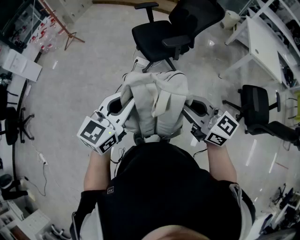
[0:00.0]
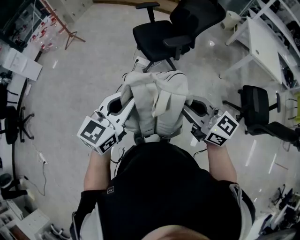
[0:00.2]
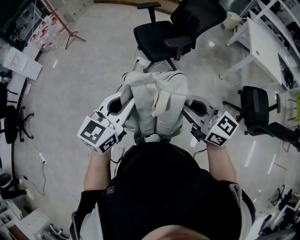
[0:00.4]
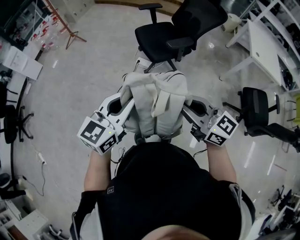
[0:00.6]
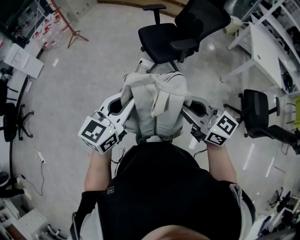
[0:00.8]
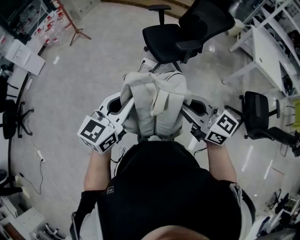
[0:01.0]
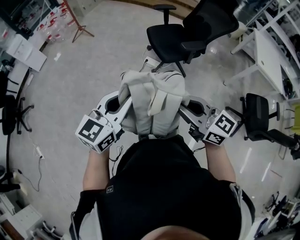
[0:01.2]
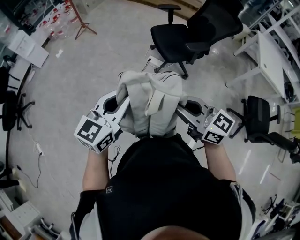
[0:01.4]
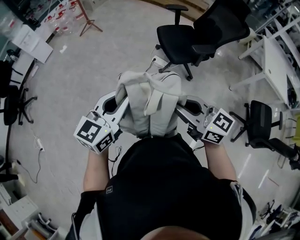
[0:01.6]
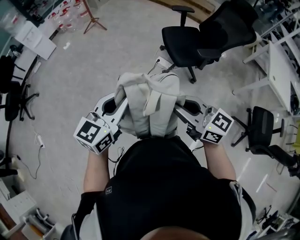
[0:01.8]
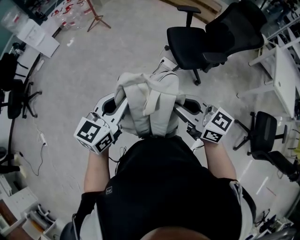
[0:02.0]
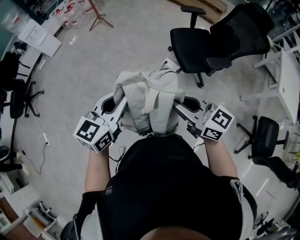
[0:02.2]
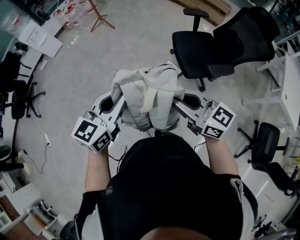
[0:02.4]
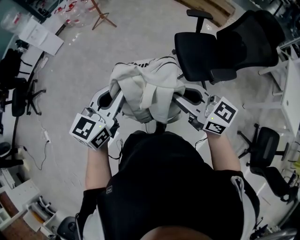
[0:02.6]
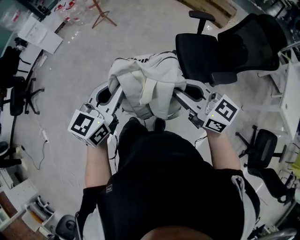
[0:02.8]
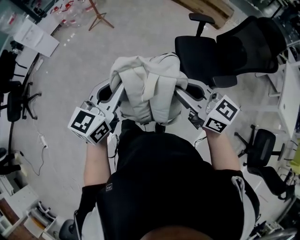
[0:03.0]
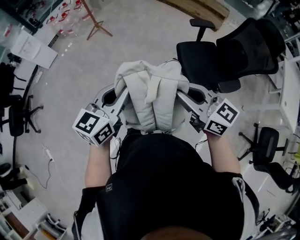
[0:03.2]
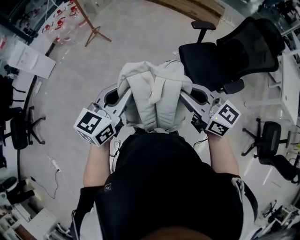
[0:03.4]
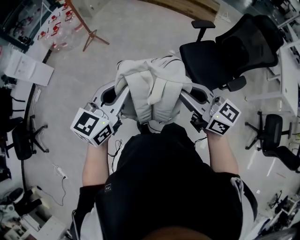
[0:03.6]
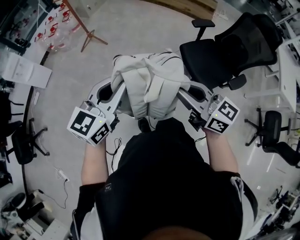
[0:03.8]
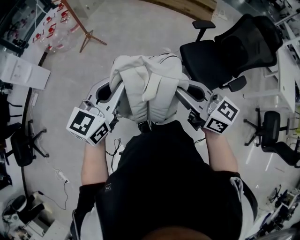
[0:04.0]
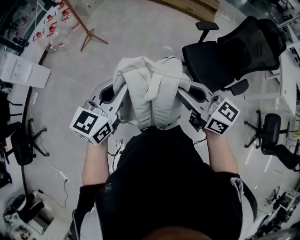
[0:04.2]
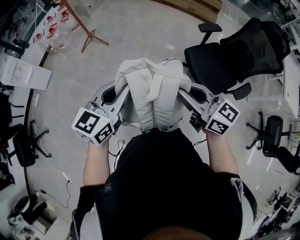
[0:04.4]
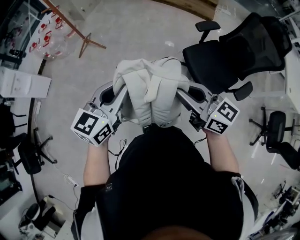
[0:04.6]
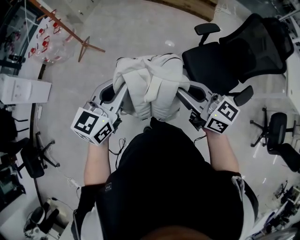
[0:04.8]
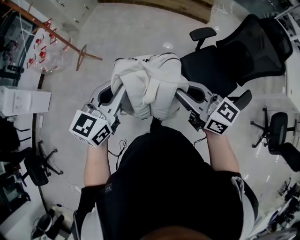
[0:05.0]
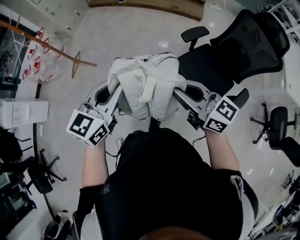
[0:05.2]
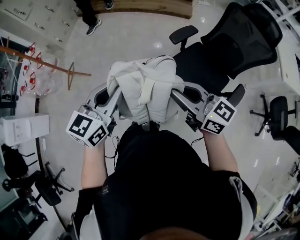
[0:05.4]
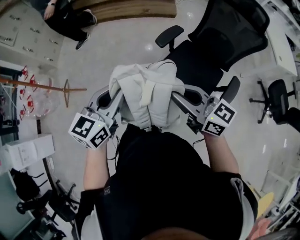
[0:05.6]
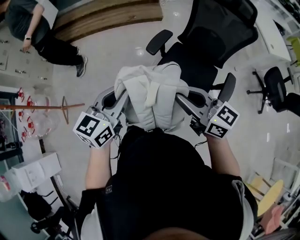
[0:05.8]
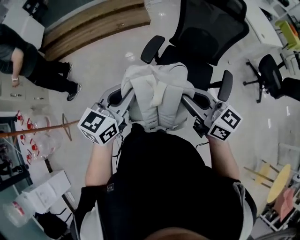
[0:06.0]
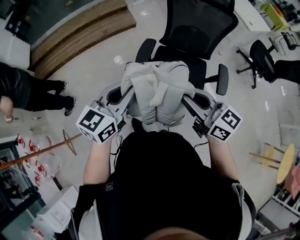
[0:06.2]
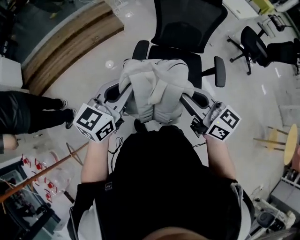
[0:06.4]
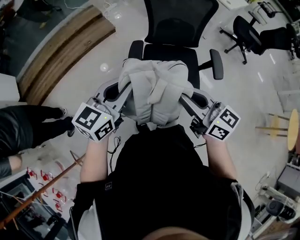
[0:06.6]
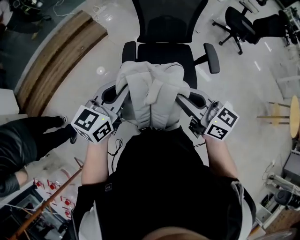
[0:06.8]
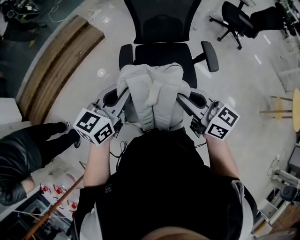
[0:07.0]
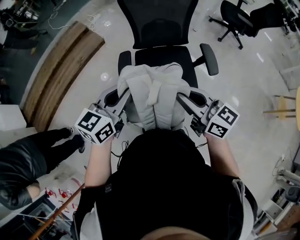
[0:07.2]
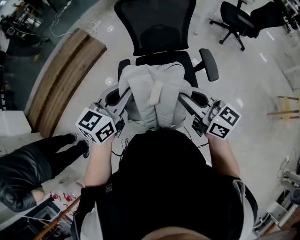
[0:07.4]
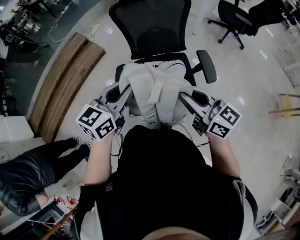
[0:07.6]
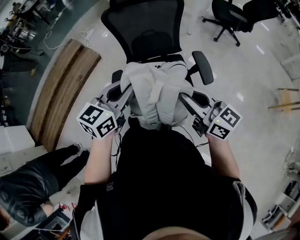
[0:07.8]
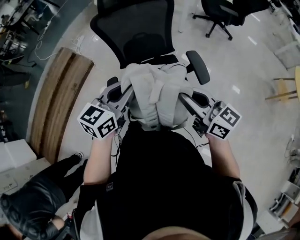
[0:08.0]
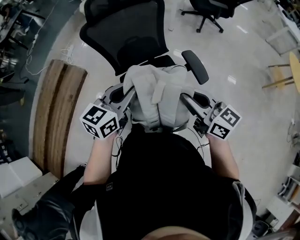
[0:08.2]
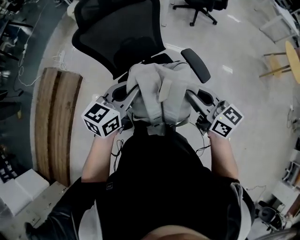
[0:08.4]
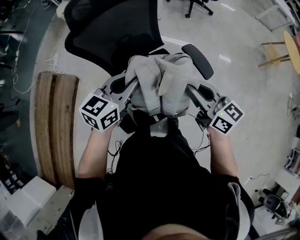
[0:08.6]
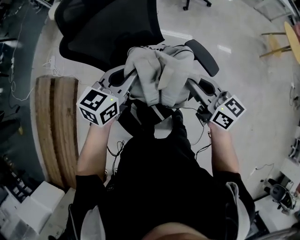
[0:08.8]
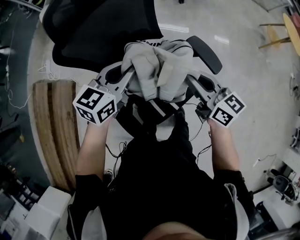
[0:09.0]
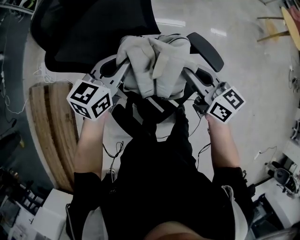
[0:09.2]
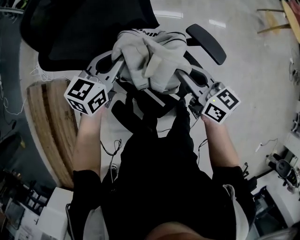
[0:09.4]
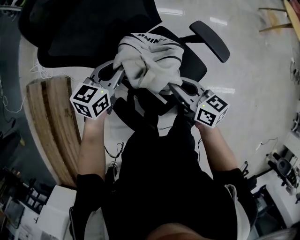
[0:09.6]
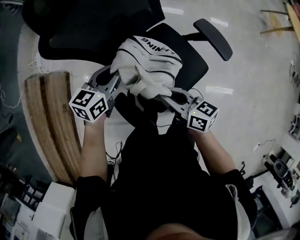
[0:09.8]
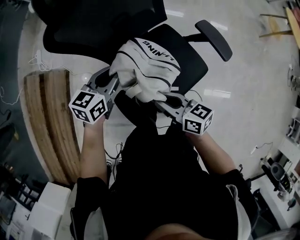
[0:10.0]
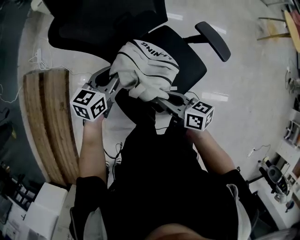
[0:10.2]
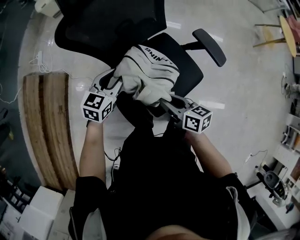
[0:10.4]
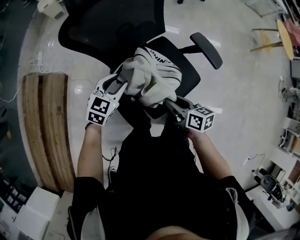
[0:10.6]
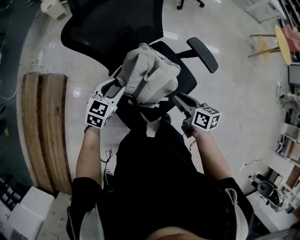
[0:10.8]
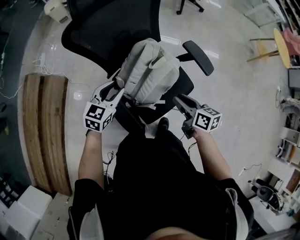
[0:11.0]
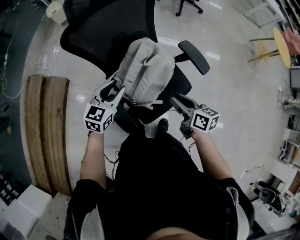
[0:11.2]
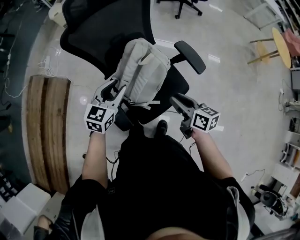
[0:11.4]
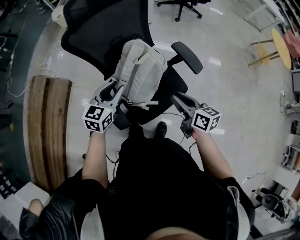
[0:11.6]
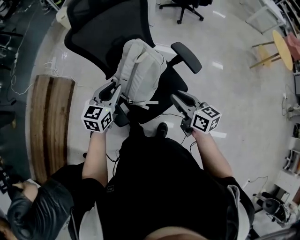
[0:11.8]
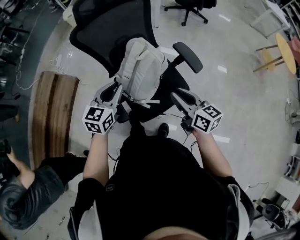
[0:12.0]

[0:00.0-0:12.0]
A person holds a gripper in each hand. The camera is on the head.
0:00.0 to 0:01.6: Both grippers travel together to the left, some 20 cm.
0:01.6 to 0:03.0: Both grippers move forward, about 35 cm.
0:03.0 to 0:04.4: Both grippers travel together forward and to the left, about 30 cm.
0:04.4 to 0:06.0: The right gripper changes place by approximately 40 cm, and turns by about 40 degrees; the left gripper changes place by roughly 50 cm, and rotates roughly 40 degrees.
0:06.0 to 0:07.6: The right gripper ends up about 15 cm from where it was, and turns by approximately 30 degrees, while the left gripper shifts by roughly 15 cm, and rotates some 30 degrees.
0:07.6 to 0:09.0: The left gripper changes place by approximately 35 cm, and turns by some 40 degrees. The right gripper ends up roughly 25 cm from where it was, and changes its angle by roughly 40 degrees.
0:09.0 to 0:10.4: The right gripper heads downward, backward and to the left, covering about 20 cm, and changes its angle by some 30 degrees, while the left gripper moves downward, to the left and backward, some 20 cm, and opens its fingers.
0:10.4 to 0:12.0: The right gripper shifts roughly 25 cm to the right and upward, and changes its angle by approximately 20 degrees. Meanwhile the left gripper travels upward, backward and to the right by approximately 25 cm.

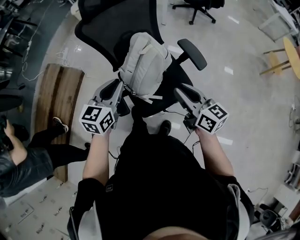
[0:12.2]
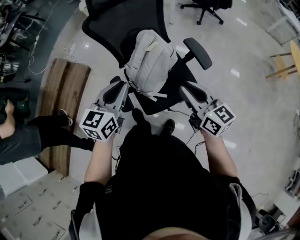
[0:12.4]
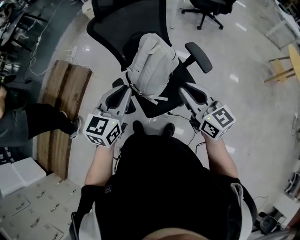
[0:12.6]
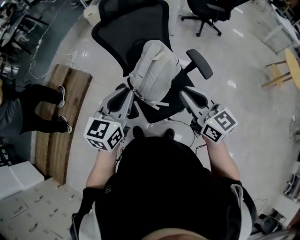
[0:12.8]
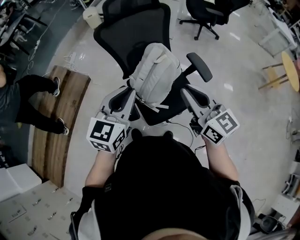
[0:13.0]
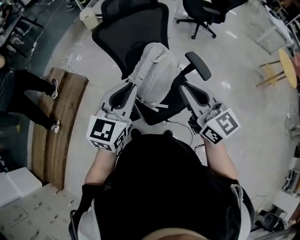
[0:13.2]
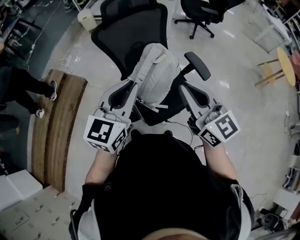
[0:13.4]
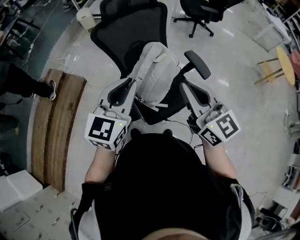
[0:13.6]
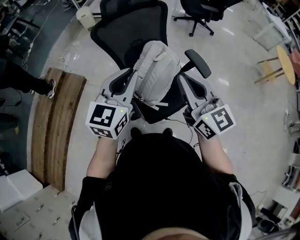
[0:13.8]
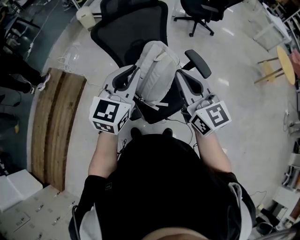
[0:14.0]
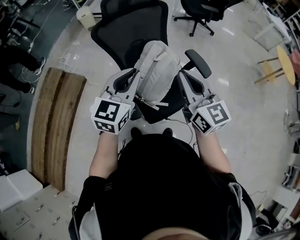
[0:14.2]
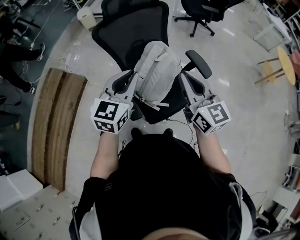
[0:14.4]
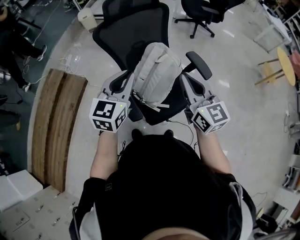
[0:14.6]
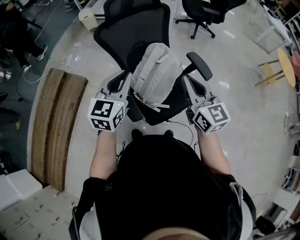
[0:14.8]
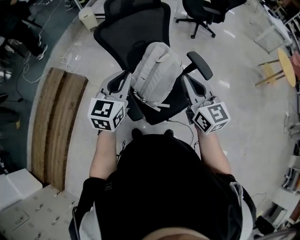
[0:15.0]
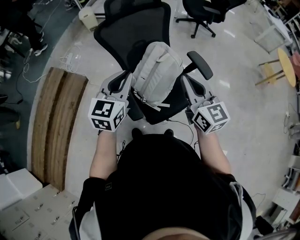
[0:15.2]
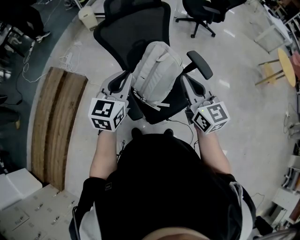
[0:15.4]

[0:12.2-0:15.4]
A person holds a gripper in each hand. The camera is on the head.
0:12.2 to 0:13.8: The left gripper travels upward by roughly 15 cm. The right gripper goes about 20 cm upward and to the left, and rotates some 30 degrees.
0:13.8 to 0:15.4: The grippers both shift downward by about 5 cm.

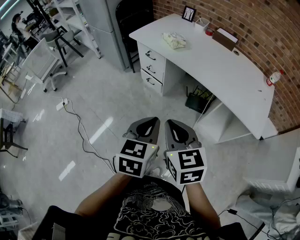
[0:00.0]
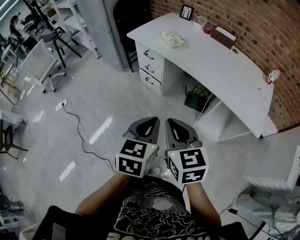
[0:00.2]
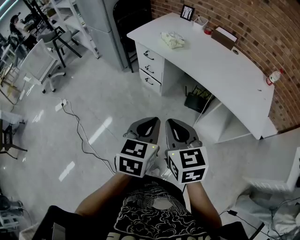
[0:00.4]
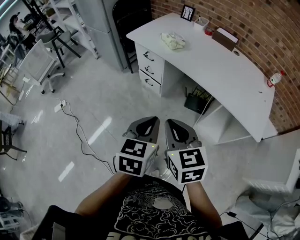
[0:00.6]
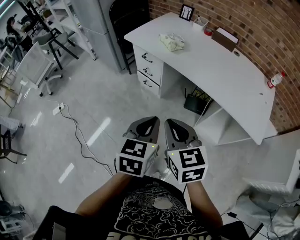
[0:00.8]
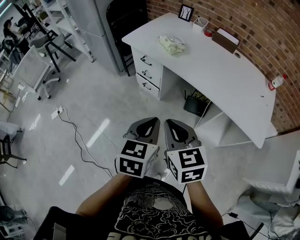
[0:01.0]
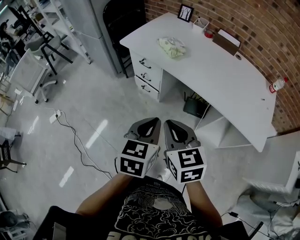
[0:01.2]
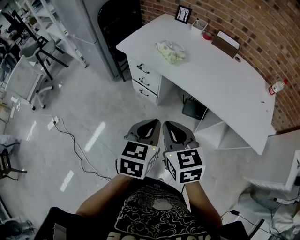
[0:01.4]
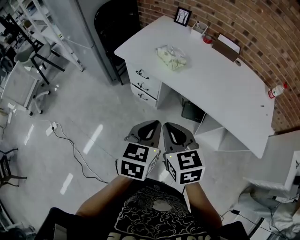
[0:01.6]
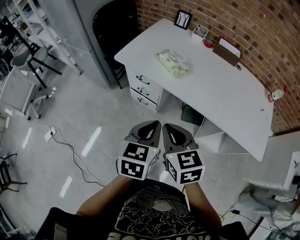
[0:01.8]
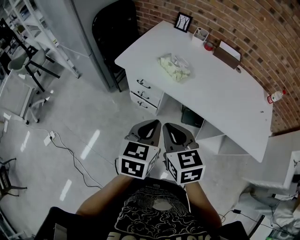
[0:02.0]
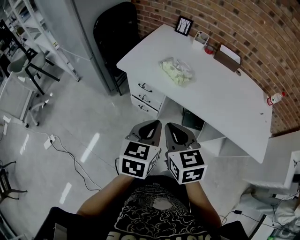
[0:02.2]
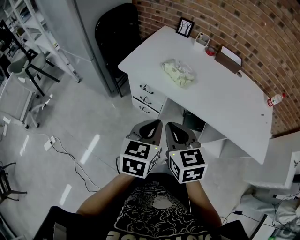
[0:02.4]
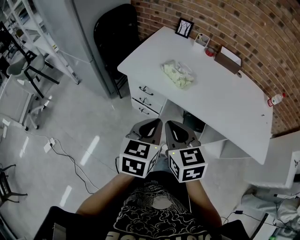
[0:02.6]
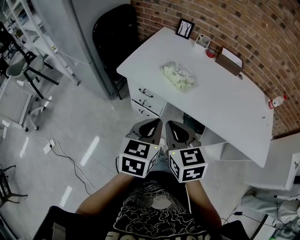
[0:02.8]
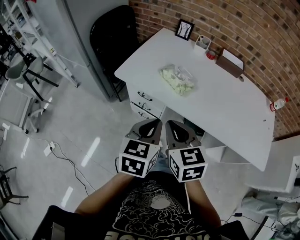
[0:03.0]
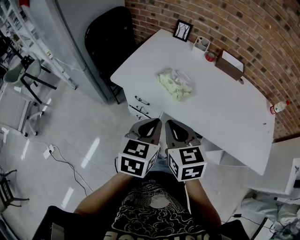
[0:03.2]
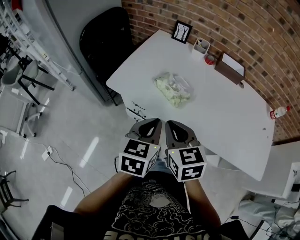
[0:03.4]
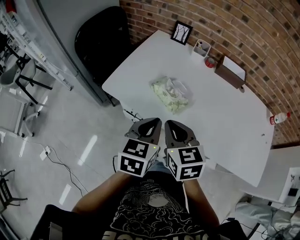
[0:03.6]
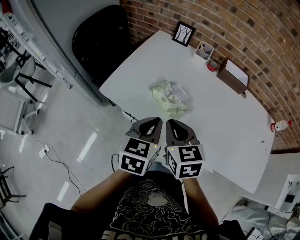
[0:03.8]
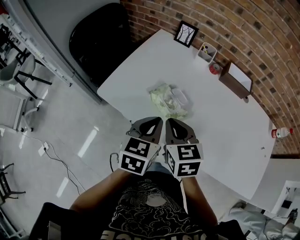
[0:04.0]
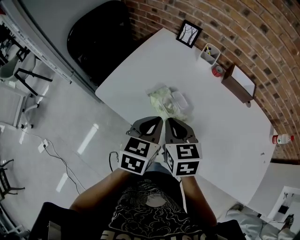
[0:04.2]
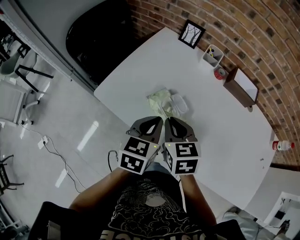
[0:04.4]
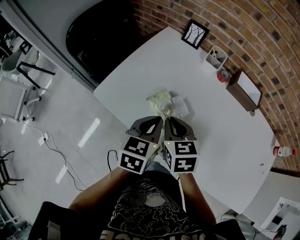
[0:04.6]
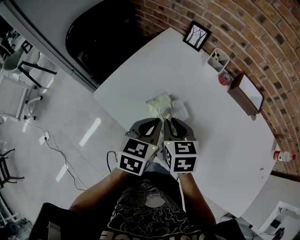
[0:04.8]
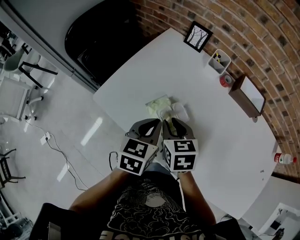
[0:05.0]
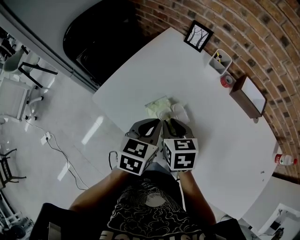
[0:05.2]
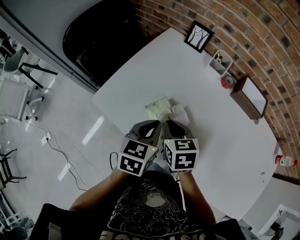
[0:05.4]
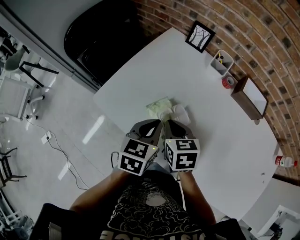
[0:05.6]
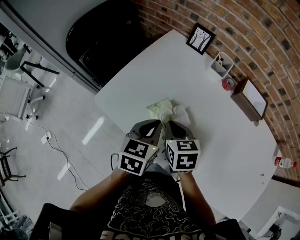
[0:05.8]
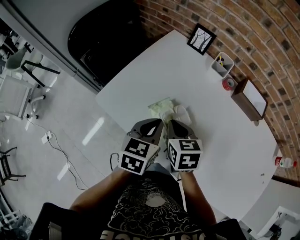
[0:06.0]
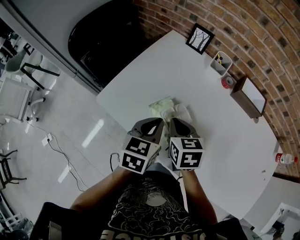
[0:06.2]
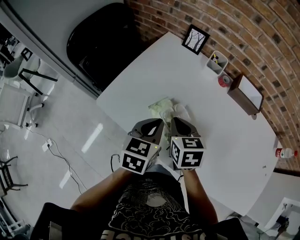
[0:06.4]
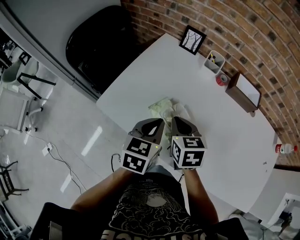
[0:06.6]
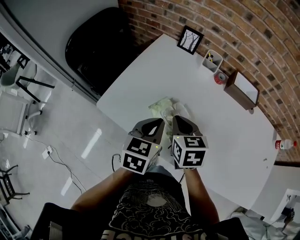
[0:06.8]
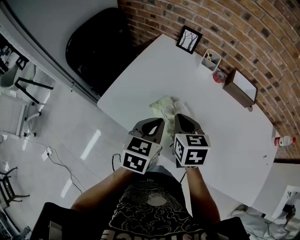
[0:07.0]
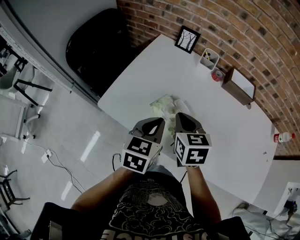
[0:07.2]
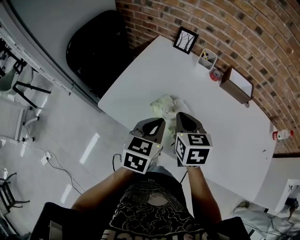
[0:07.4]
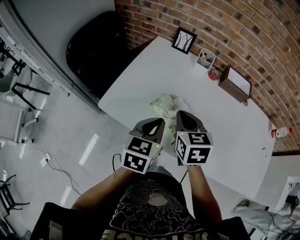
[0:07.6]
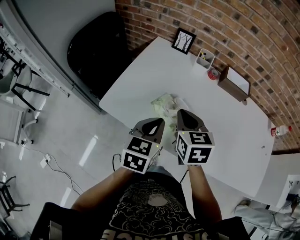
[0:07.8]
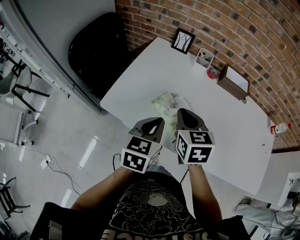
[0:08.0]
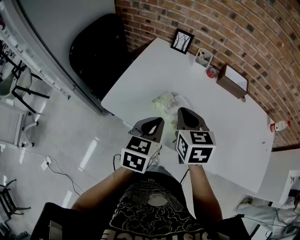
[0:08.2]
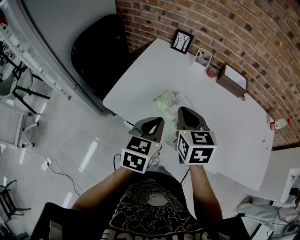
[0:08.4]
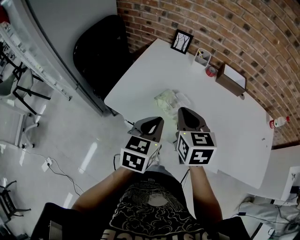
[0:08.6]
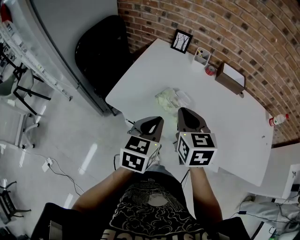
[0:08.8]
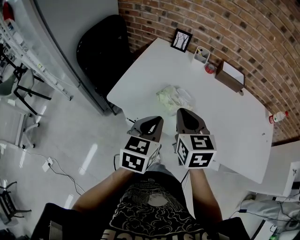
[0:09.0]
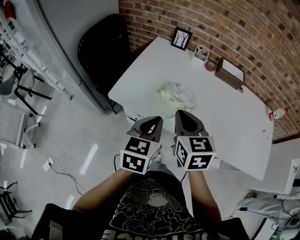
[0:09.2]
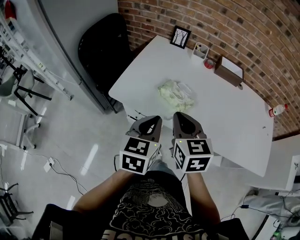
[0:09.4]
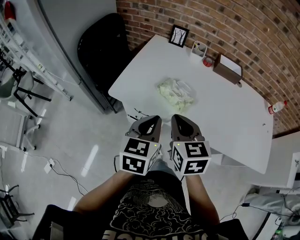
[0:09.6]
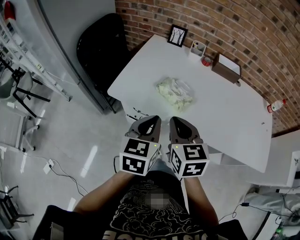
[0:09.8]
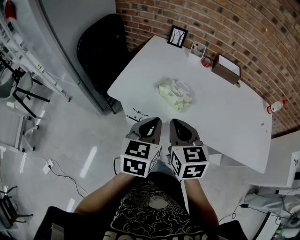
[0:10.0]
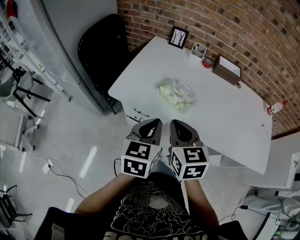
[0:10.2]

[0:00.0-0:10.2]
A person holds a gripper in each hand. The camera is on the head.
0:00.0 to 0:01.4: Both grippers move forward, approximately 20 cm.
0:01.4 to 0:03.0: The grippers both shift forward and to the left by about 20 cm.
0:03.0 to 0:04.4: The grippers both shift forward by roughly 25 cm.
0:04.4 to 0:05.8: The right gripper shifts roughly 5 cm downward. The left gripper ends up roughly 5 cm from where it was.
0:05.8 to 0:07.2: The right gripper travels upward by roughly 5 cm. The left gripper shifts by about 5 cm.
0:07.2 to 0:08.8: The left gripper travels backward by approximately 10 cm; the right gripper shifts approximately 10 cm backward and upward.
0:08.8 to 0:10.2: The two grippers go about 10 cm backward.
